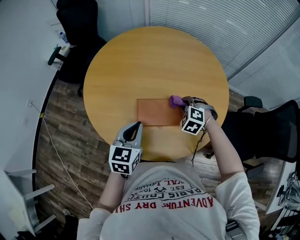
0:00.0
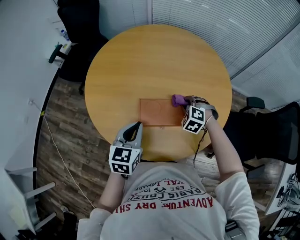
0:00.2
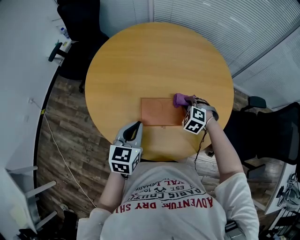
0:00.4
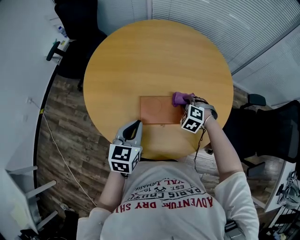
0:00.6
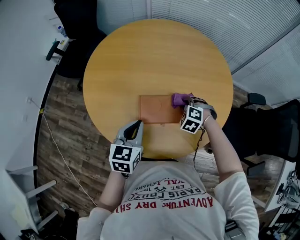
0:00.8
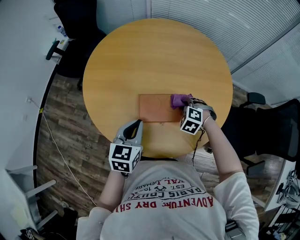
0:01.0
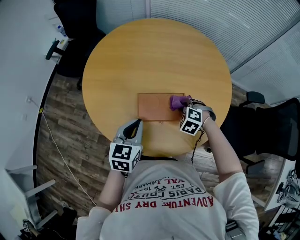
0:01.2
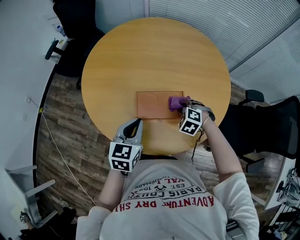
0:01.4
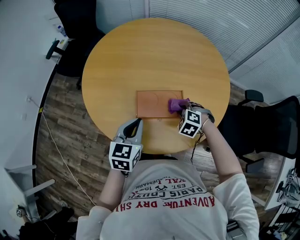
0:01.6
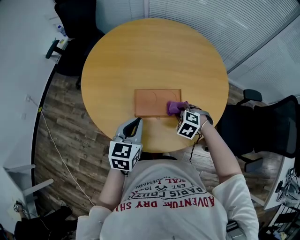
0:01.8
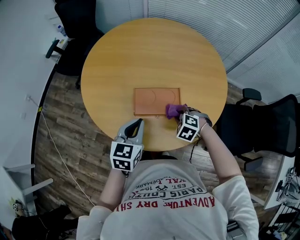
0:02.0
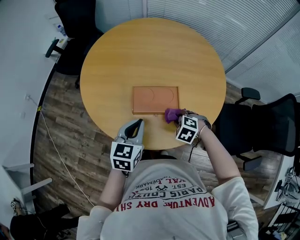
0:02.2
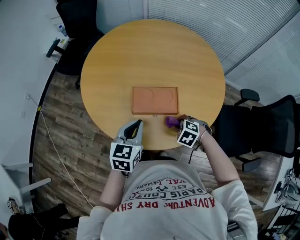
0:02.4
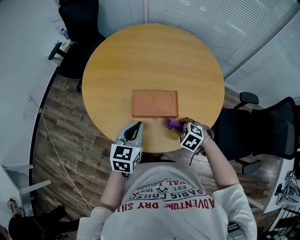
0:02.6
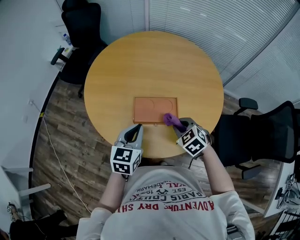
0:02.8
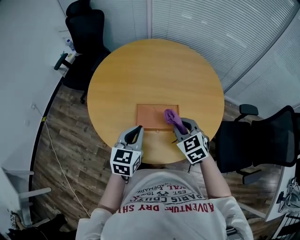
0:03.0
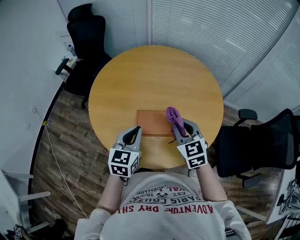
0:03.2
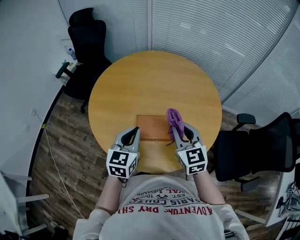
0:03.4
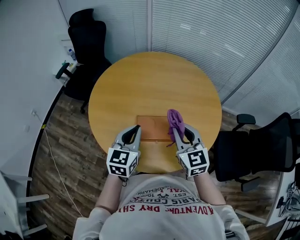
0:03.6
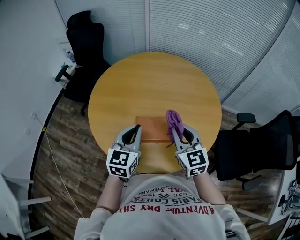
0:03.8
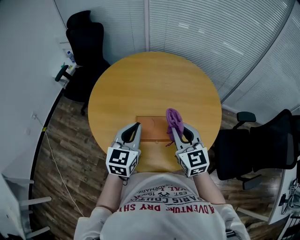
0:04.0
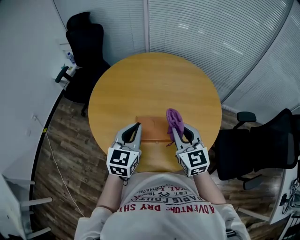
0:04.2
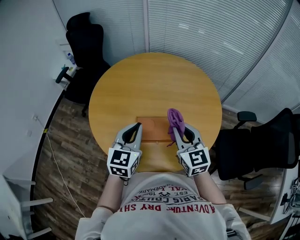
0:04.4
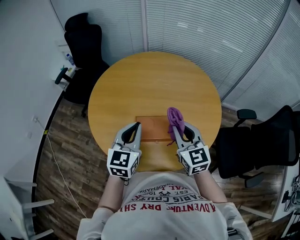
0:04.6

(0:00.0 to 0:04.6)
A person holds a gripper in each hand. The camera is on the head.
0:00.0 - 0:01.6: The right gripper moves backward, approximately 5 cm.
0:01.6 - 0:03.0: The right gripper is displaced upward by roughly 15 cm, and turns by some 40 degrees.
0:03.0 - 0:04.6: Both grippers move upward, some 10 cm. The right gripper rotates about 30 degrees.

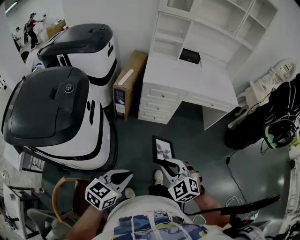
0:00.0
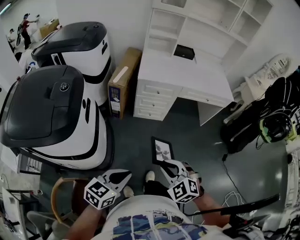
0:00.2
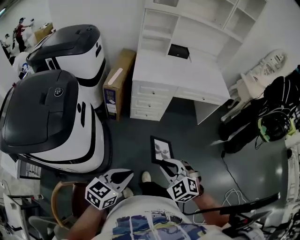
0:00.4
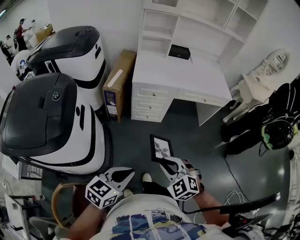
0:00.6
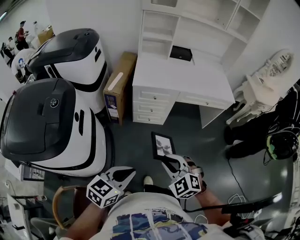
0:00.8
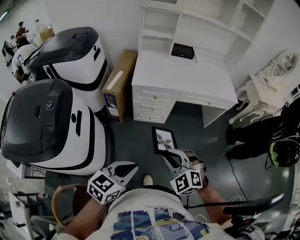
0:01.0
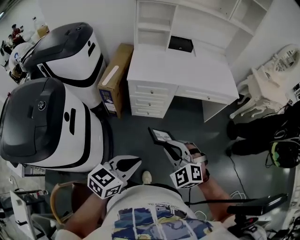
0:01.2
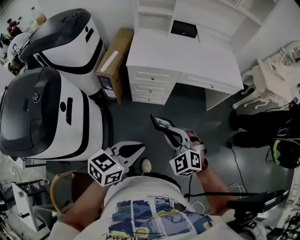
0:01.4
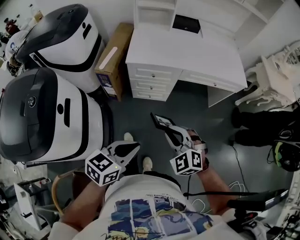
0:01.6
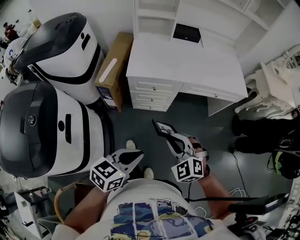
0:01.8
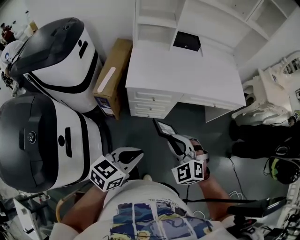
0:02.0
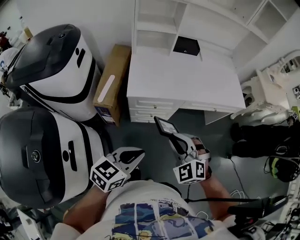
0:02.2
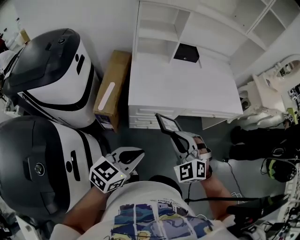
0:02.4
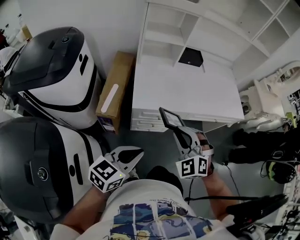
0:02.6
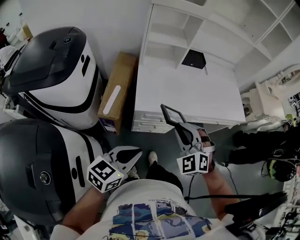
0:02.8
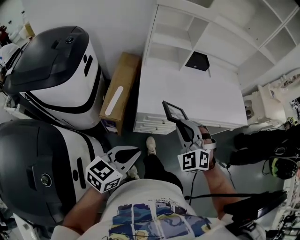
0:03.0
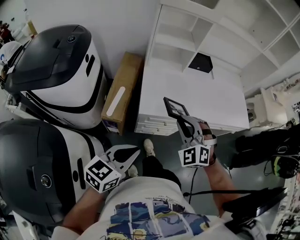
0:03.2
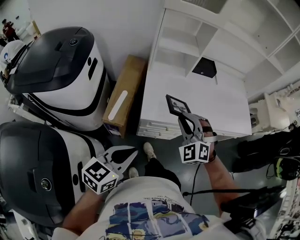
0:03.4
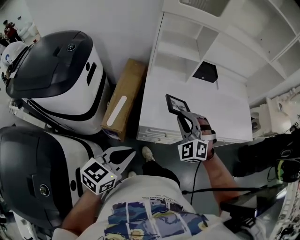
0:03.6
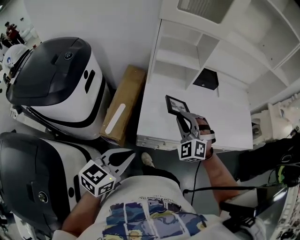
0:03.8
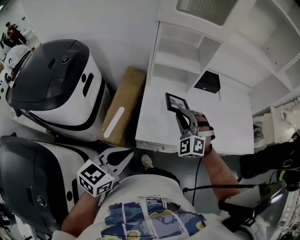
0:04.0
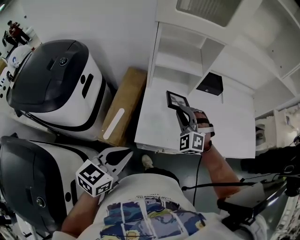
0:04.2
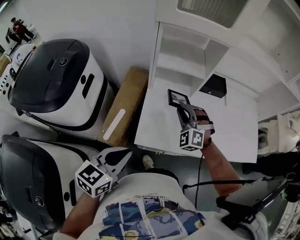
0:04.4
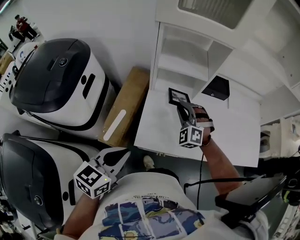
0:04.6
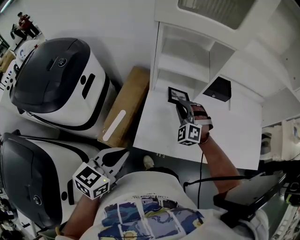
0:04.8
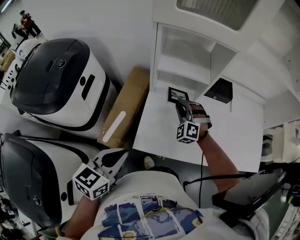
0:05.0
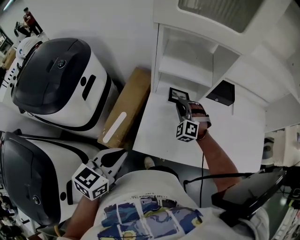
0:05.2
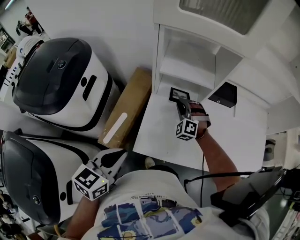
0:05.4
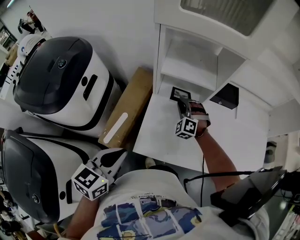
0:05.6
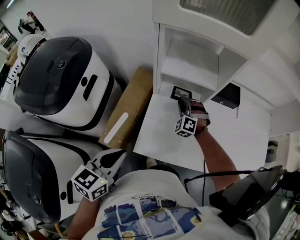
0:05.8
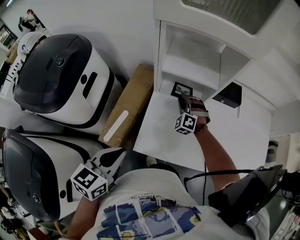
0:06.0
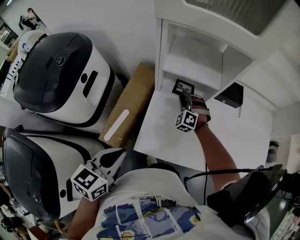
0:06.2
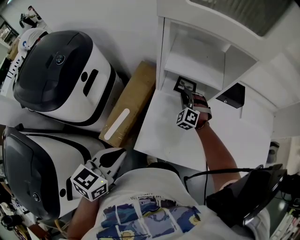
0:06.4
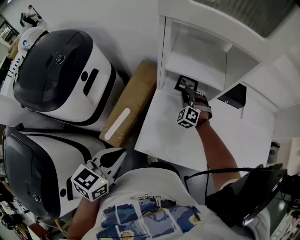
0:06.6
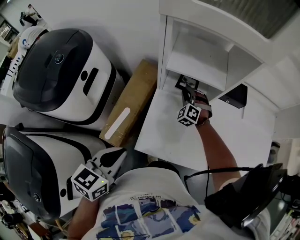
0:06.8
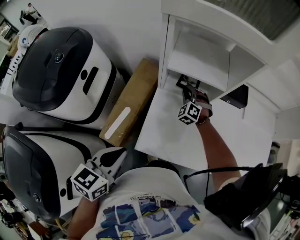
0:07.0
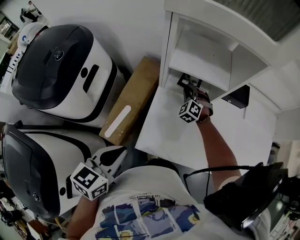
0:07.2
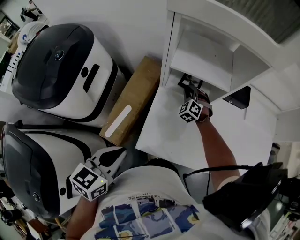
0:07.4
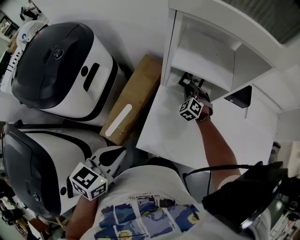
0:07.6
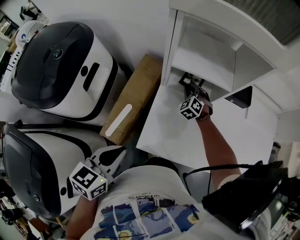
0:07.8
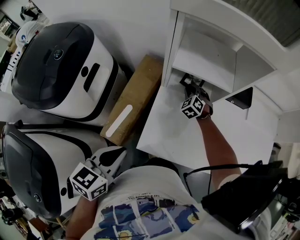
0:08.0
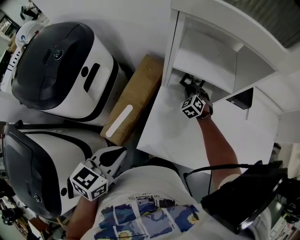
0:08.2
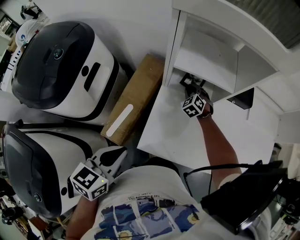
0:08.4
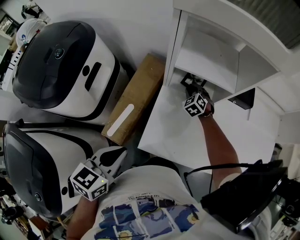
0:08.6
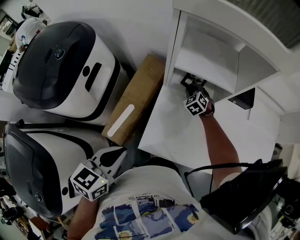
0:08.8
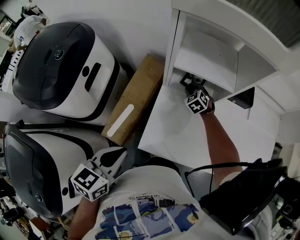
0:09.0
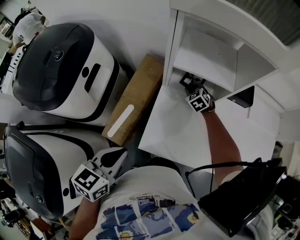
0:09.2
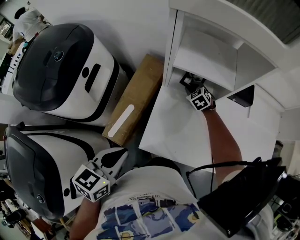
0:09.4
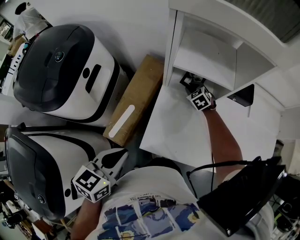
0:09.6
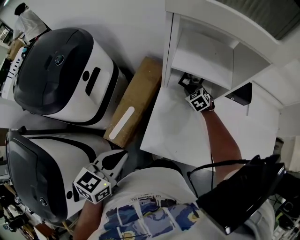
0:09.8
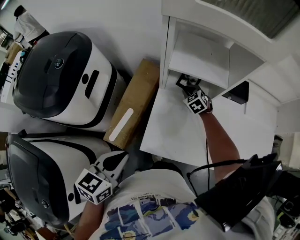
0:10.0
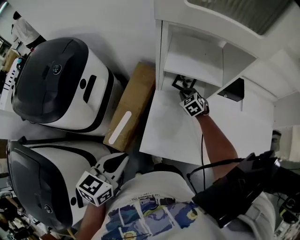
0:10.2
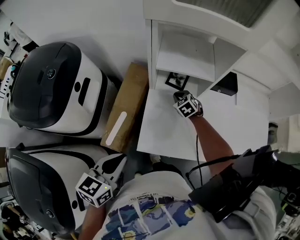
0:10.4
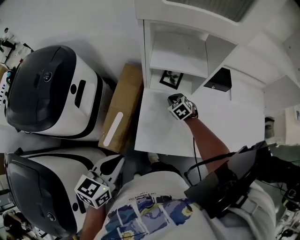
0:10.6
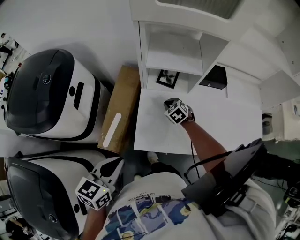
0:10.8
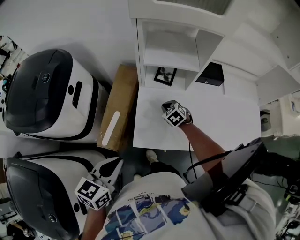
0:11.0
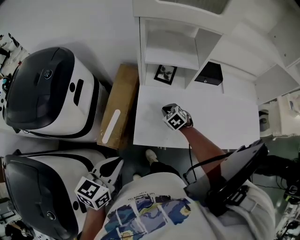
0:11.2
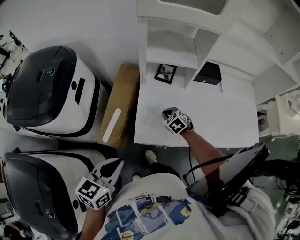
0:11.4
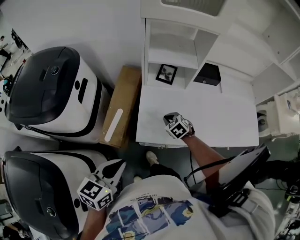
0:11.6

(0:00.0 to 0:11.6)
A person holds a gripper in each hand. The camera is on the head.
0:00.0 - 0:01.4: The right gripper shifts roughly 20 cm forward. Meanwhile the left gripper moves forward and to the right, approximately 20 cm.
0:01.4 - 0:02.8: Both grippers travel together forward and to the left, about 30 cm.
0:02.8 - 0:04.4: The right gripper travels forward by some 30 cm; the left gripper heads forward, covering approximately 20 cm.
0:04.4 - 0:05.8: The left gripper shifts some 5 cm forward. The right gripper heads forward and downward, covering some 15 cm.
0:05.8 - 0:07.2: The right gripper moves forward, some 5 cm.
0:07.2 - 0:08.8: The right gripper turns by approximately 20 degrees.
0:08.8 - 0:10.2: The grippers make only small movements.
0:10.2 - 0:11.6: The left gripper shifts some 10 cm backward. The right gripper travels backward by some 20 cm.

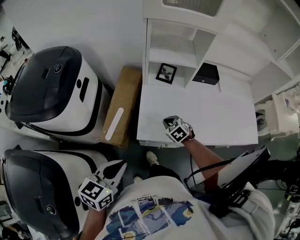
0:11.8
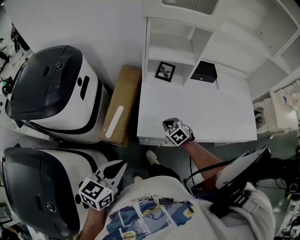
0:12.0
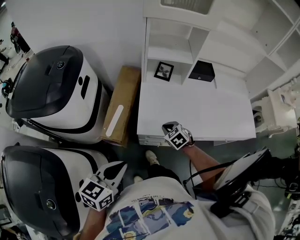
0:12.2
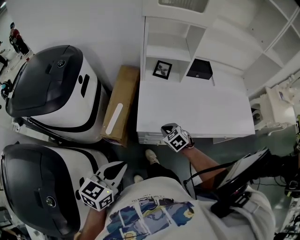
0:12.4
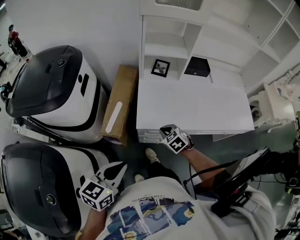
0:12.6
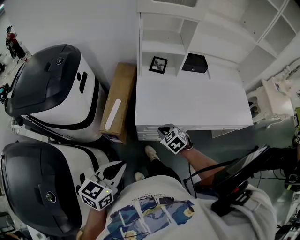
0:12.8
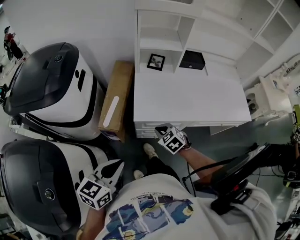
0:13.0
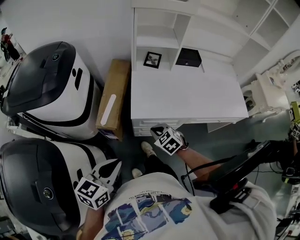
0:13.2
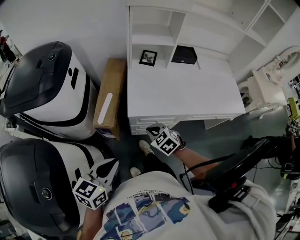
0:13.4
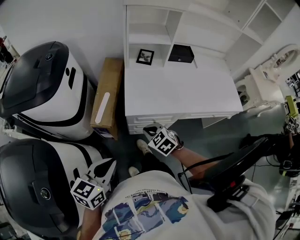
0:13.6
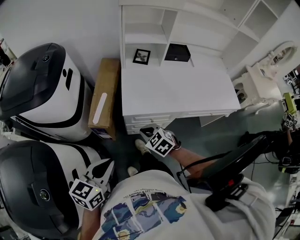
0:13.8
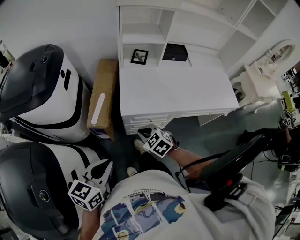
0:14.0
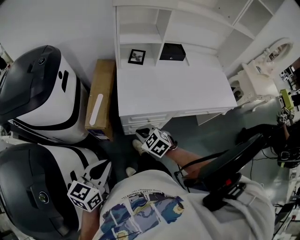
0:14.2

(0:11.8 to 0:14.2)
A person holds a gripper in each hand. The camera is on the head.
0:11.8 - 0:13.0: The left gripper moves backward, approximately 10 cm; the right gripper shifts approximately 15 cm backward.
0:13.0 - 0:14.2: The right gripper is displaced backward by about 5 cm.

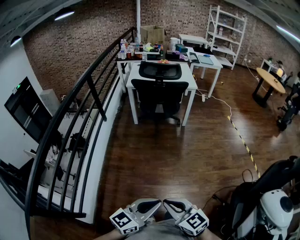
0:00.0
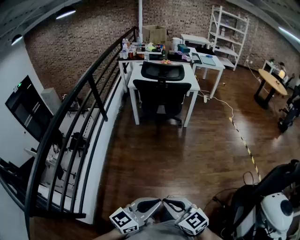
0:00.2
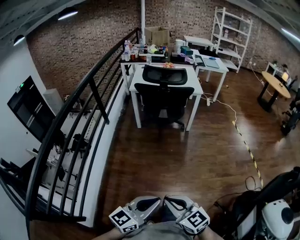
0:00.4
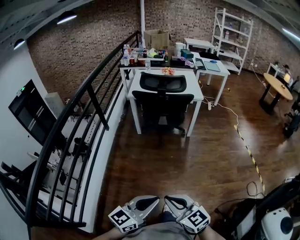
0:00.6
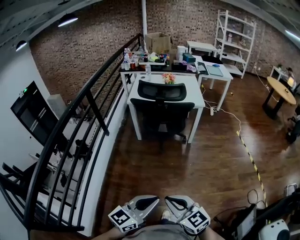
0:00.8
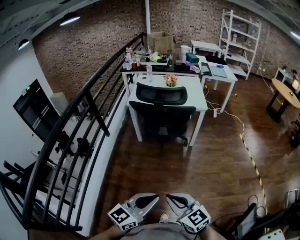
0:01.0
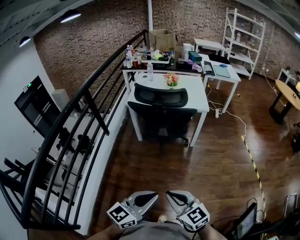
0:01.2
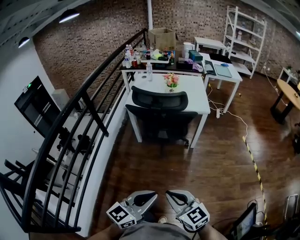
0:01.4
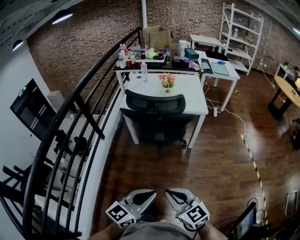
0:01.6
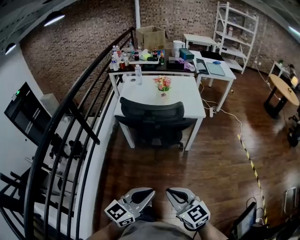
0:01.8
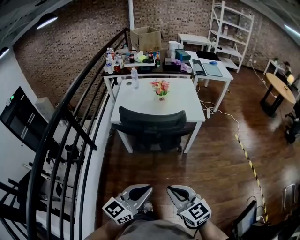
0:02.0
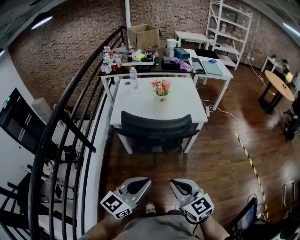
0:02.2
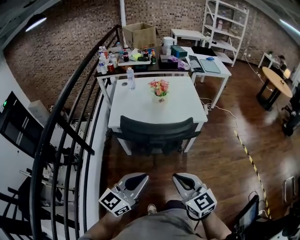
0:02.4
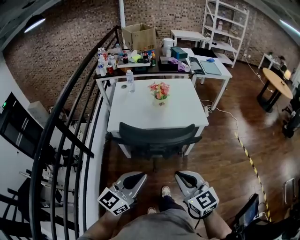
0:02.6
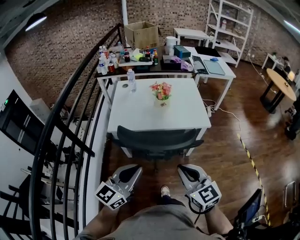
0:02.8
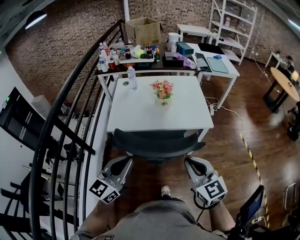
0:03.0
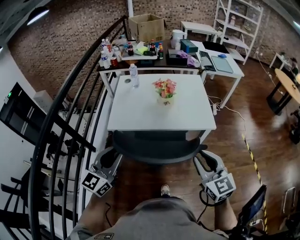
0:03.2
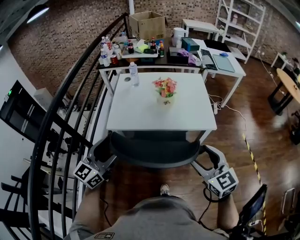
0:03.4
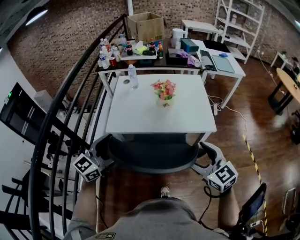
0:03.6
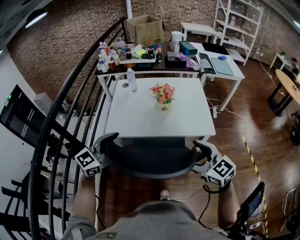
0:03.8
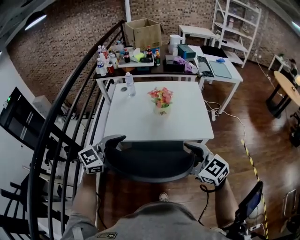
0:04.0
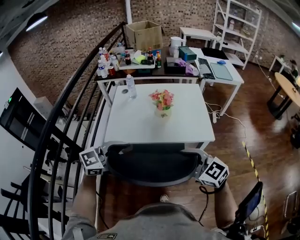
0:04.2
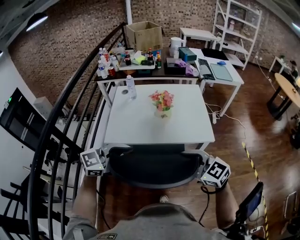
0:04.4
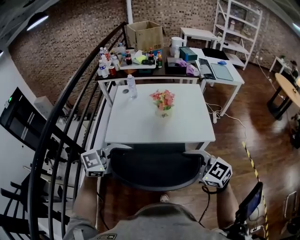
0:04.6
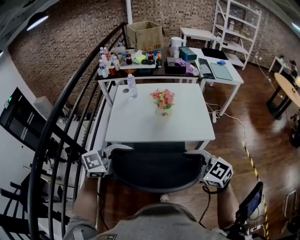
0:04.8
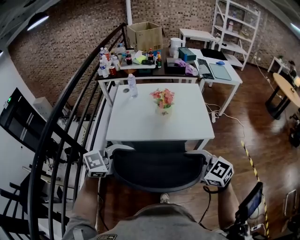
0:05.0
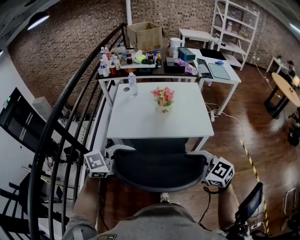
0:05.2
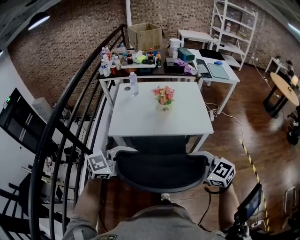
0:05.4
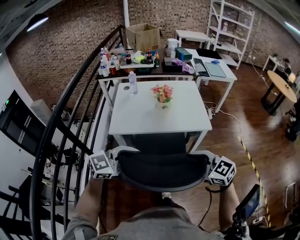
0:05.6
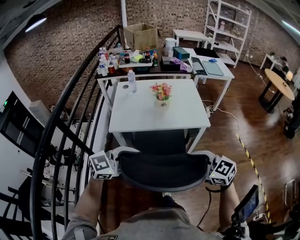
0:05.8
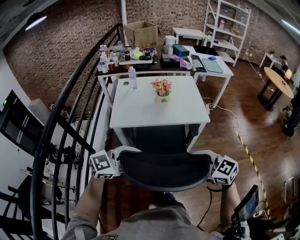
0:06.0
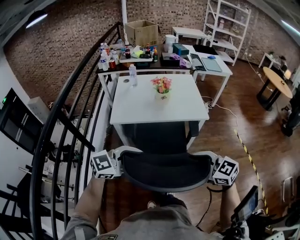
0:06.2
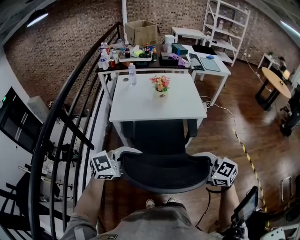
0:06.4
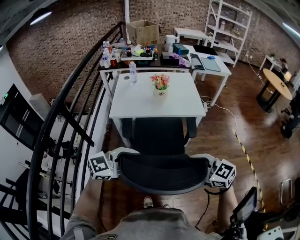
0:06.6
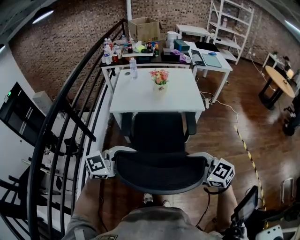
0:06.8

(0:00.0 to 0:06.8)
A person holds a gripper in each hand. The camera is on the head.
0:00.0 - 0:01.4: Both grippers move forward, about 35 cm.
0:01.4 - 0:02.8: Both grippers move forward, roughly 35 cm.
0:02.8 - 0:04.0: Both grippers move forward, approximately 15 cm. The right gripper changes its angle by roughly 20 degrees, and opens. The left gripper swivels approximately 20 degrees, and opens.
0:04.0 - 0:05.4: The left gripper shifts by approximately 10 cm, and closes. Meanwhile the right gripper moves about 10 cm, and closes up.
0:05.4 - 0:06.8: The right gripper ends up about 20 cm from where it was. Meanwhile the left gripper changes place by some 20 cm.
